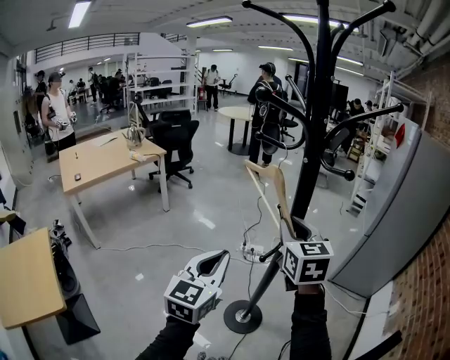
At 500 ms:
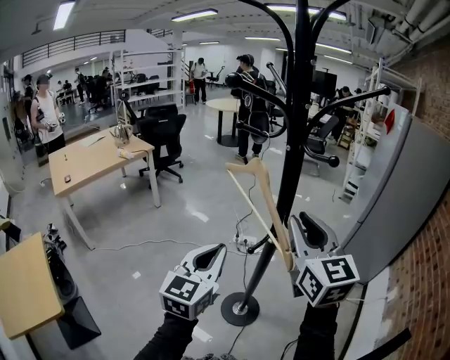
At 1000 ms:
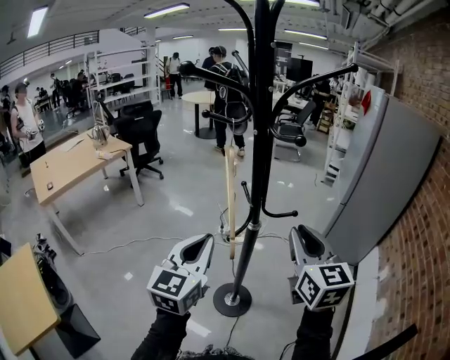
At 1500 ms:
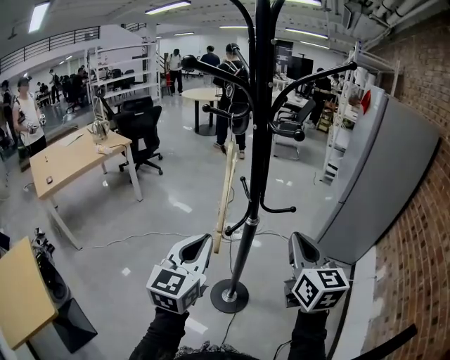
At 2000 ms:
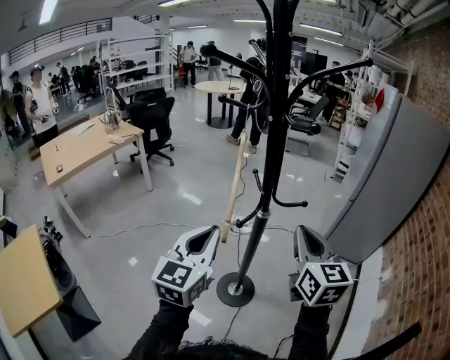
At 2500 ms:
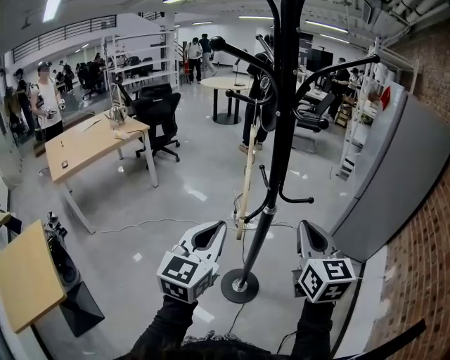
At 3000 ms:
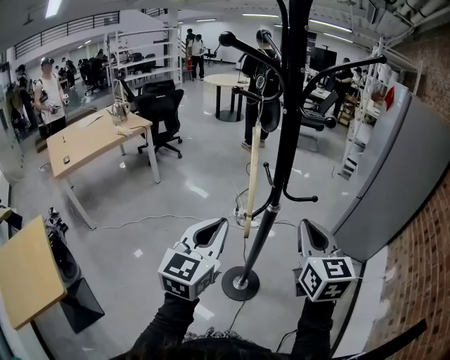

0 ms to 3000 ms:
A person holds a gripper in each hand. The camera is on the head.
0 ms to 1500 ms: The right gripper goes about 15 cm to the right and backward.
1500 ms to 3000 ms: The grippers stay close to where they were, moving slightly.

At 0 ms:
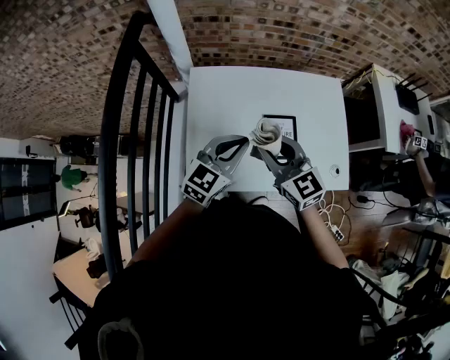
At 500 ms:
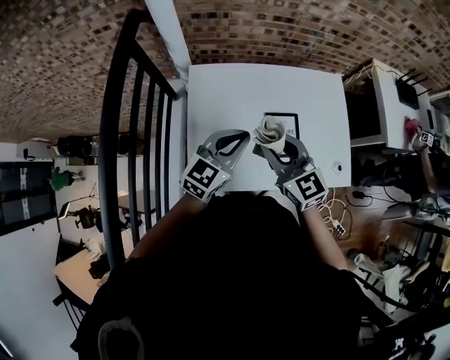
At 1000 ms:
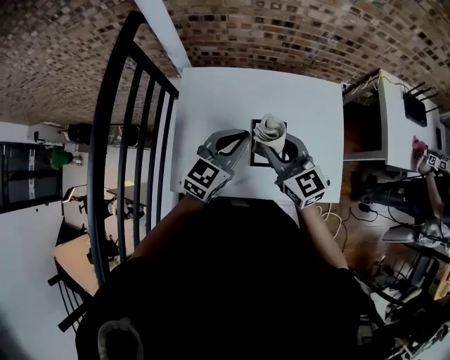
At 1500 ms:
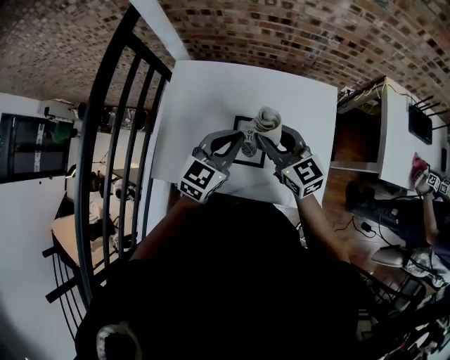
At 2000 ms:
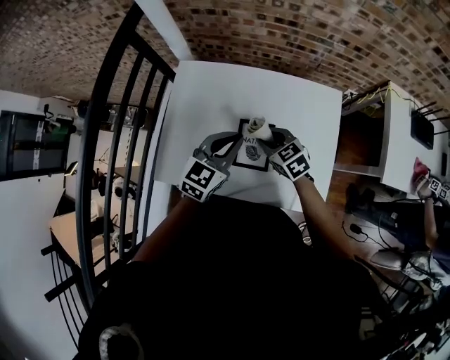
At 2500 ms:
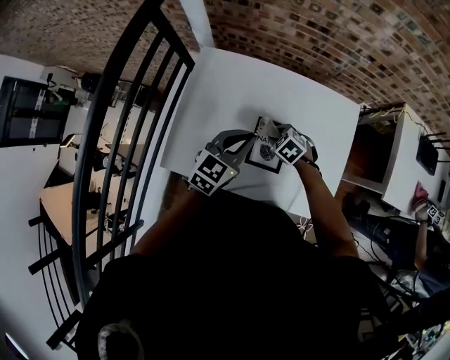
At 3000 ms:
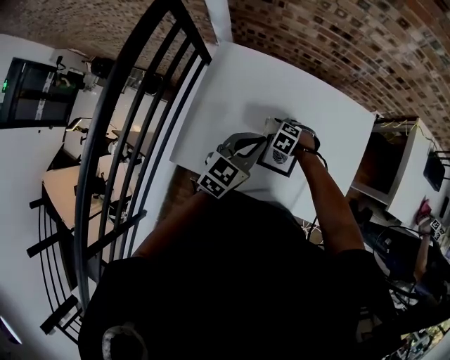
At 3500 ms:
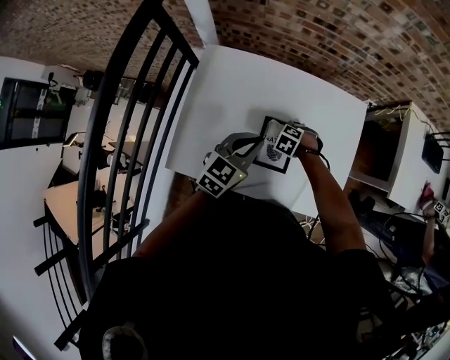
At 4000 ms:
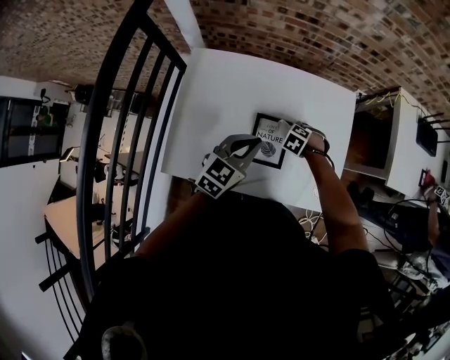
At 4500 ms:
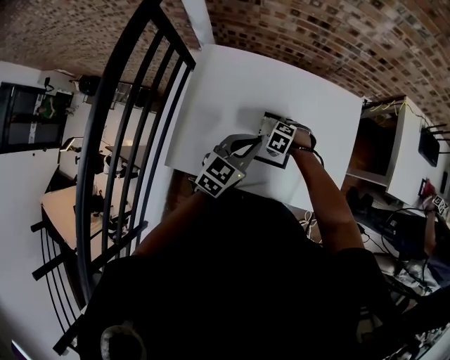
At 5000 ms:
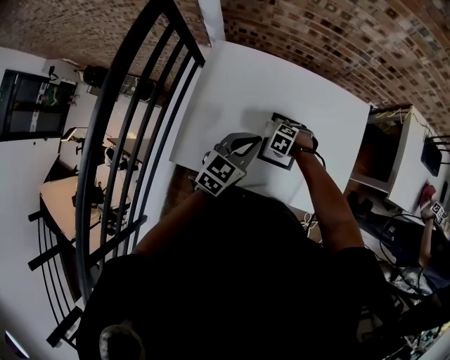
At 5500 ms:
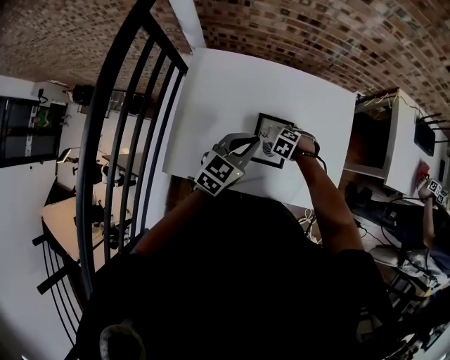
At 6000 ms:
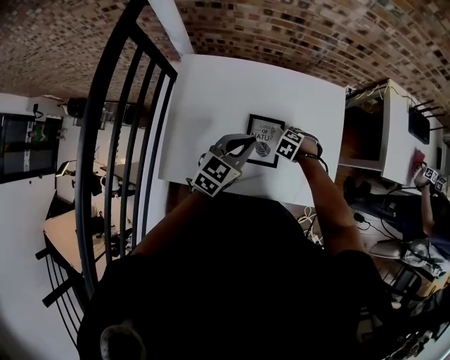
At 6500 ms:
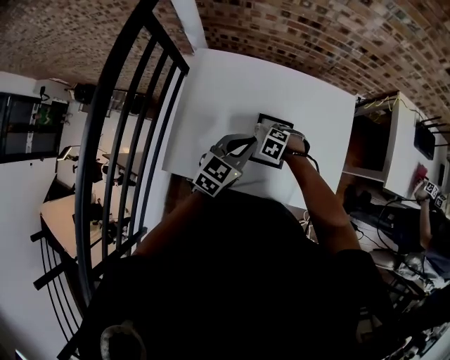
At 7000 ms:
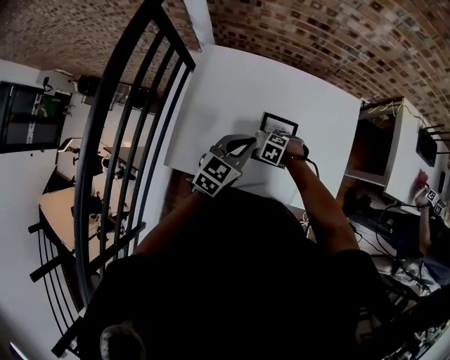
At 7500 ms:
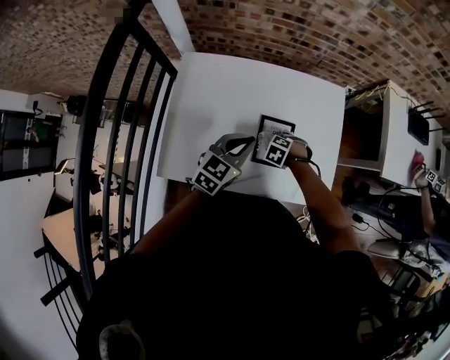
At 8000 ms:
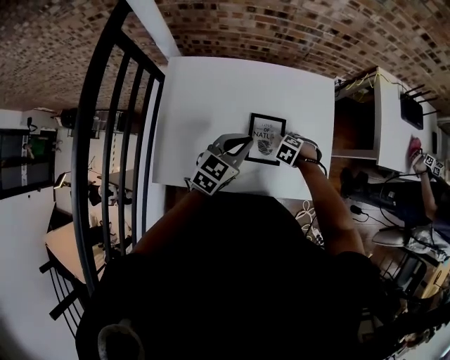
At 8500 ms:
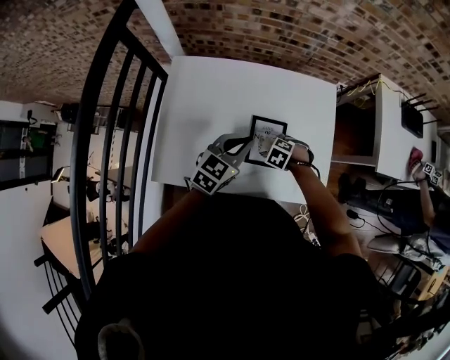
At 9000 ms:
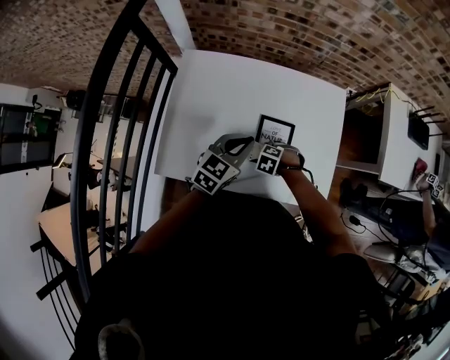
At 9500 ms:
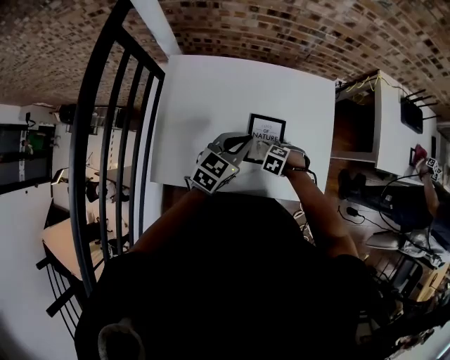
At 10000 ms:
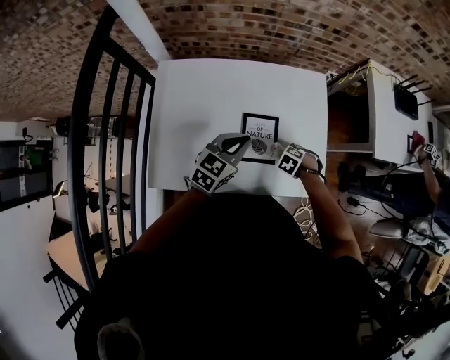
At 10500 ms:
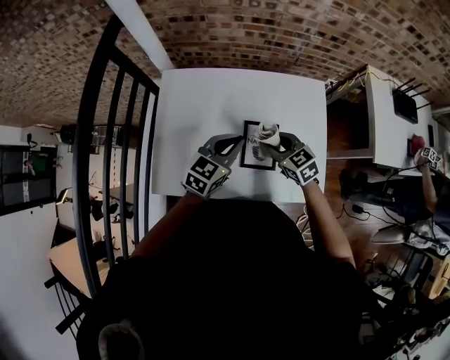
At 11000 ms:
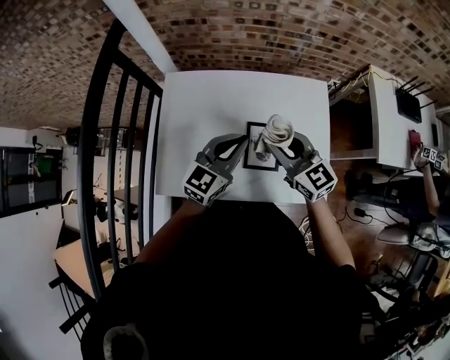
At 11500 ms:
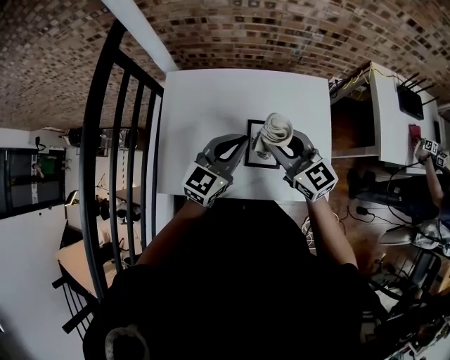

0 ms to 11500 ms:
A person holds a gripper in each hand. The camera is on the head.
0 ms to 2000 ms: The left gripper is displaced to the right by approximately 15 cm. The right gripper shifts roughly 25 cm downward, to the right and forward, and turns by approximately 30 degrees.
2000 ms to 4000 ms: The left gripper ends up about 5 cm from where it was. The right gripper moves downward, about 15 cm, and points its fingers approximately 50 degrees further downward.
9500 ms to 11500 ms: The right gripper heads upward, covering approximately 30 cm, and tilts its fingers roughly 80 degrees upward. Meanwhile the left gripper goes some 10 cm upward.

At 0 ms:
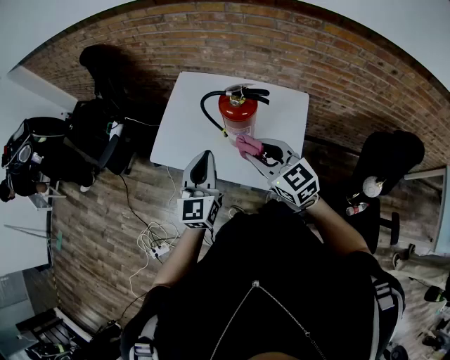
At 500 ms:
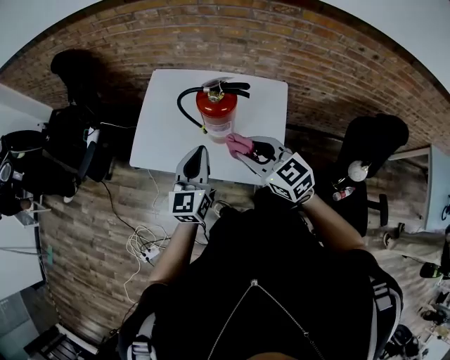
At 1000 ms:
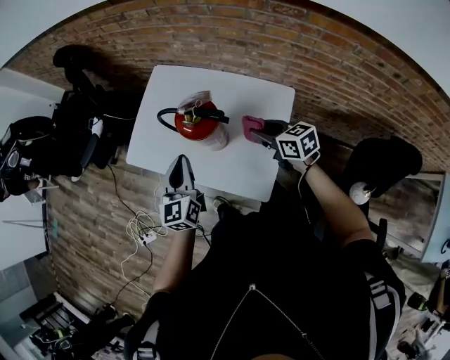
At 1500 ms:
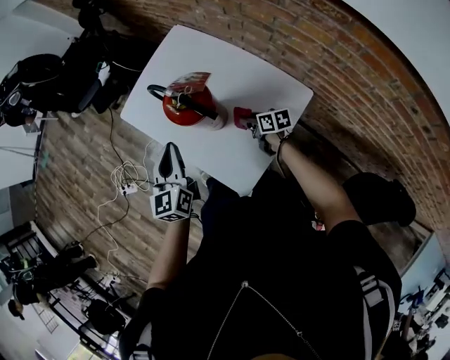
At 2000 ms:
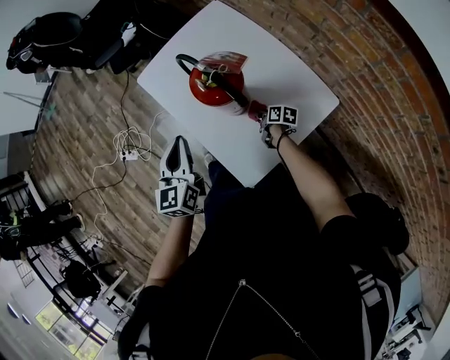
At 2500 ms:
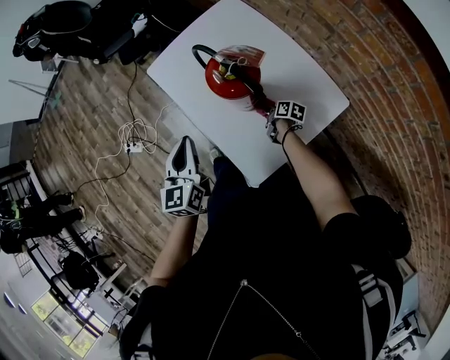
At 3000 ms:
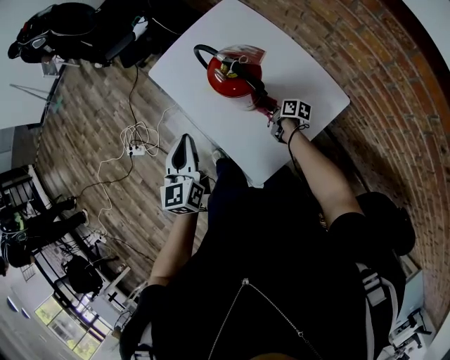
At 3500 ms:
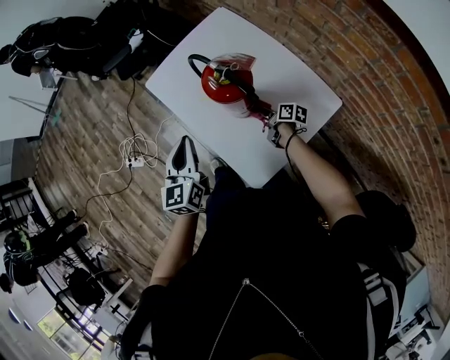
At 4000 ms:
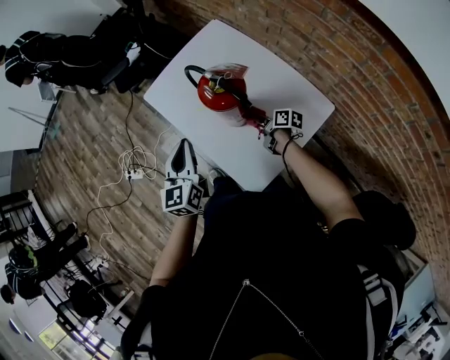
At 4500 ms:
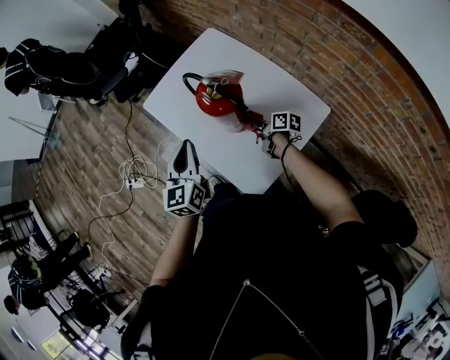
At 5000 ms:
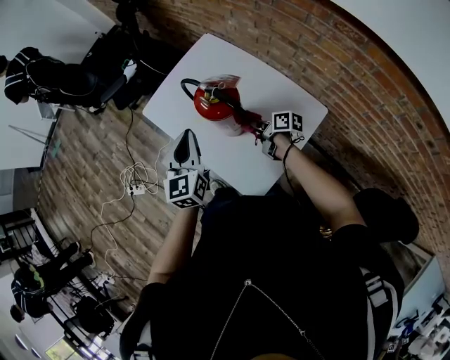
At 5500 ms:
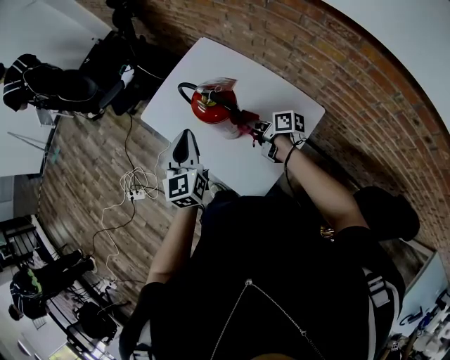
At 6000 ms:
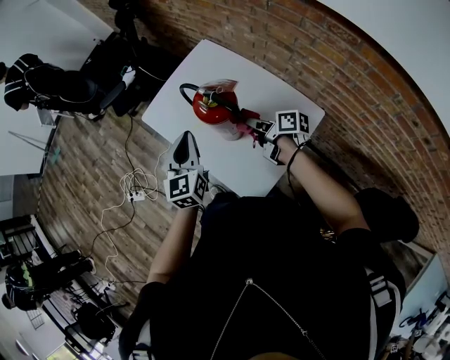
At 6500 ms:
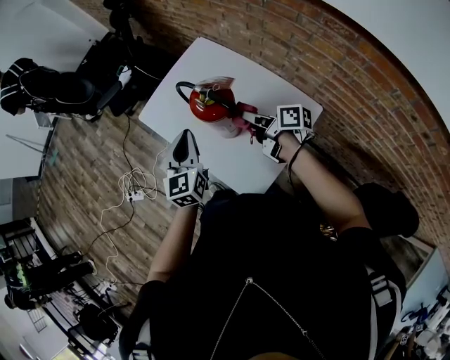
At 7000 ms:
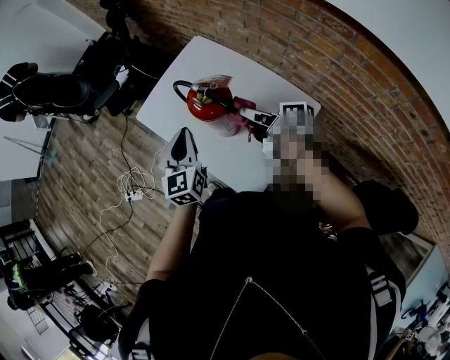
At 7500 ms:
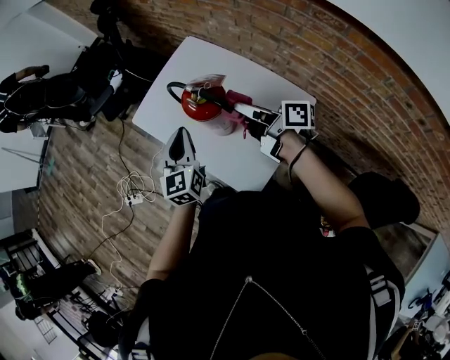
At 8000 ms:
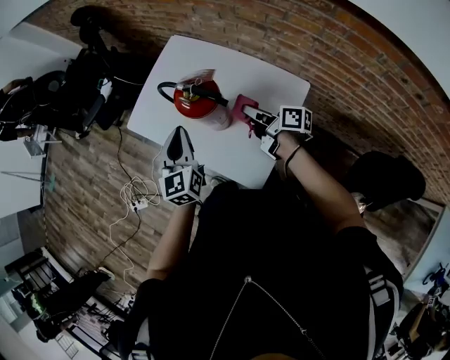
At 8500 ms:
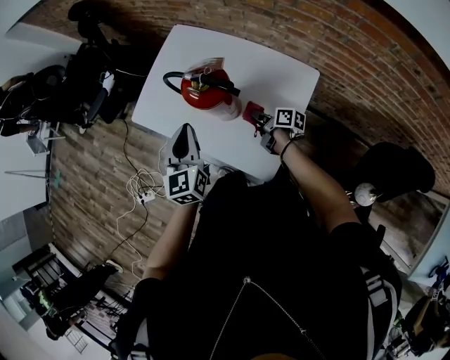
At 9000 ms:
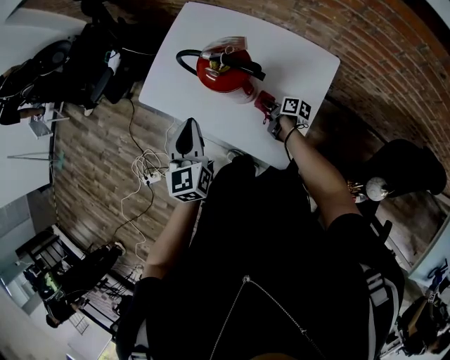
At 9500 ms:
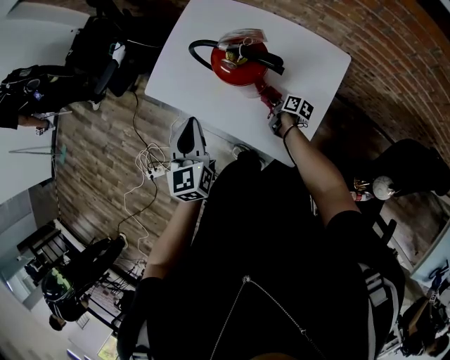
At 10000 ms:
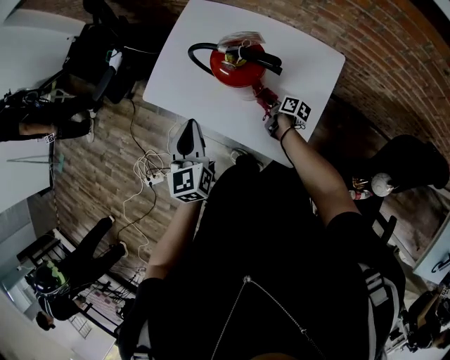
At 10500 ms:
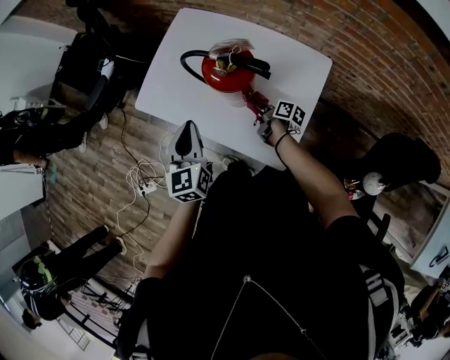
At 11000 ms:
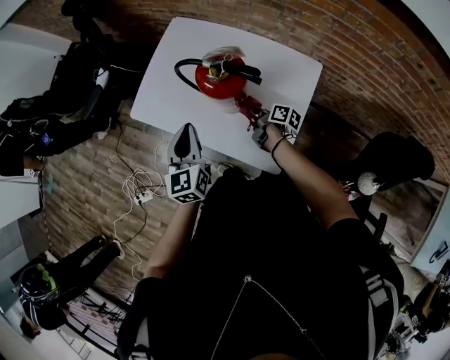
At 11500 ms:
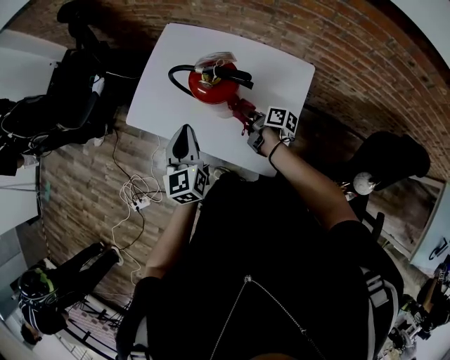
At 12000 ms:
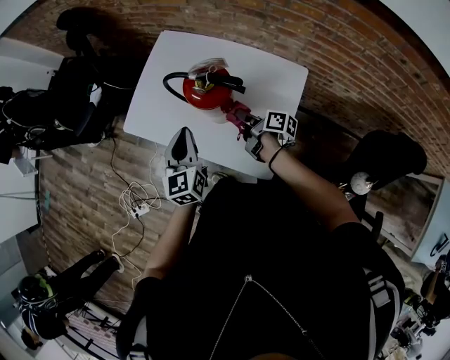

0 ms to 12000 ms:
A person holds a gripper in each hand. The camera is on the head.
0 ms to 2000 ms: The left gripper moves downward, approximately 10 cm, and changes its angle by roughly 50 degrees.
4000 ms to 6000 ms: The left gripper moves about 5 cm.
8000 ms to 10000 ms: The left gripper changes place by approximately 10 cm.
10000 ms to 12000 ms: The left gripper changes place by approximately 5 cm.

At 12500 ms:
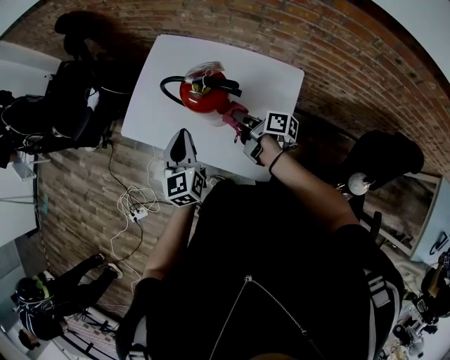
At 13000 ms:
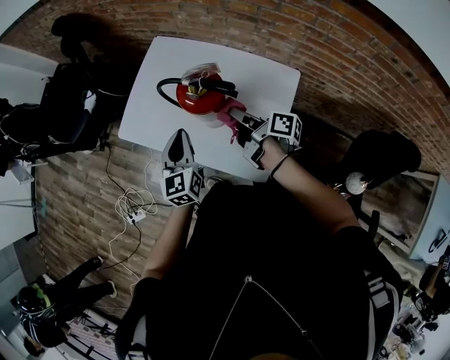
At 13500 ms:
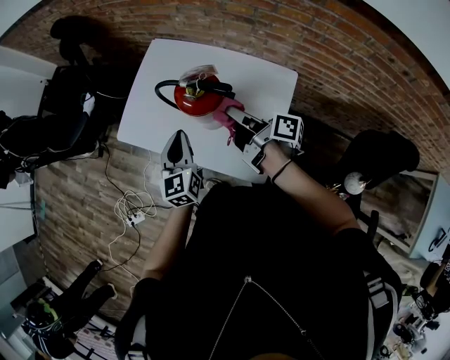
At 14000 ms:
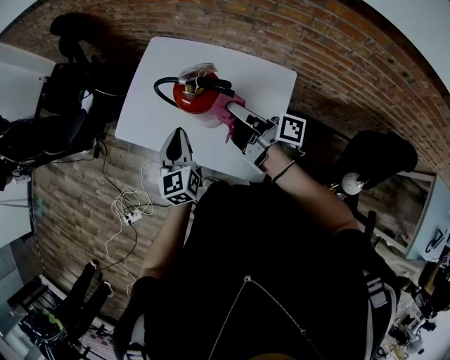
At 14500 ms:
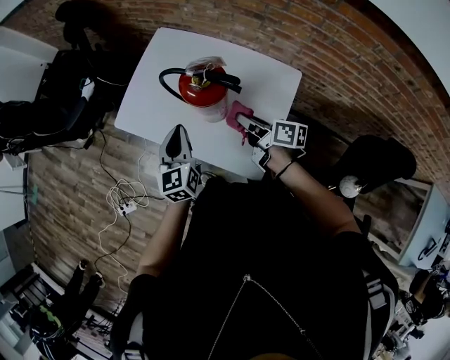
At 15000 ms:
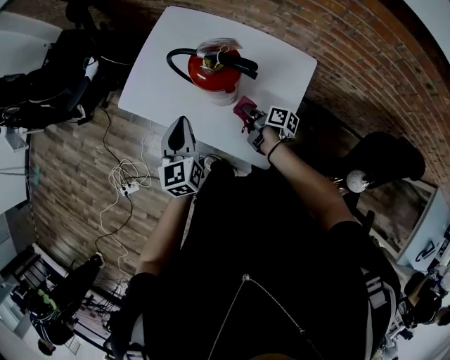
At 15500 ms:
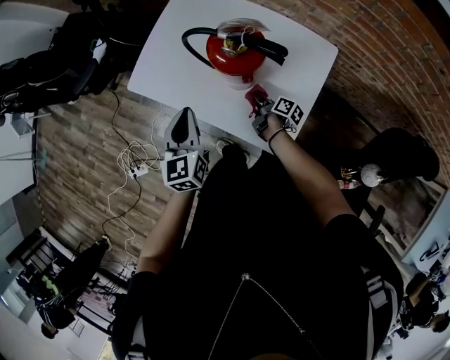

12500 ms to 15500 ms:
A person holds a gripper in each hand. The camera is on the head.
14000 ms to 15500 ms: The left gripper ends up about 10 cm from where it was.
